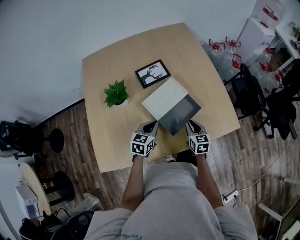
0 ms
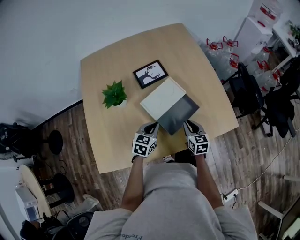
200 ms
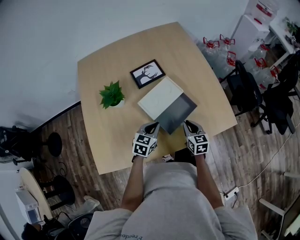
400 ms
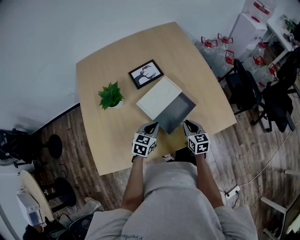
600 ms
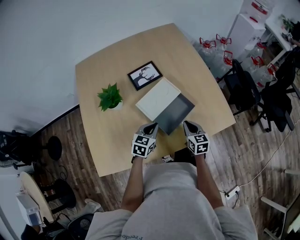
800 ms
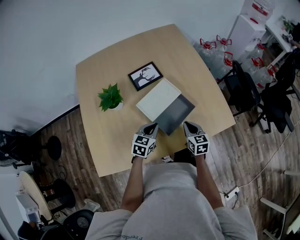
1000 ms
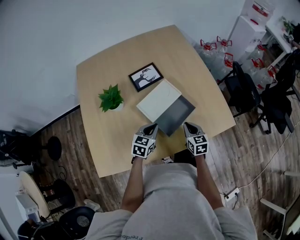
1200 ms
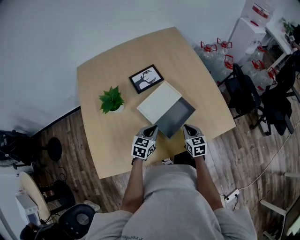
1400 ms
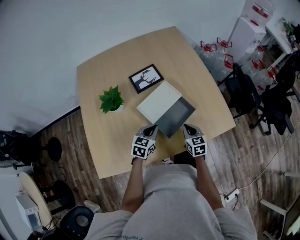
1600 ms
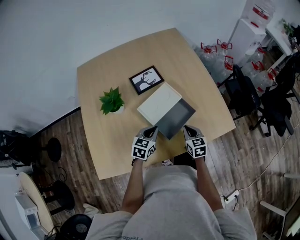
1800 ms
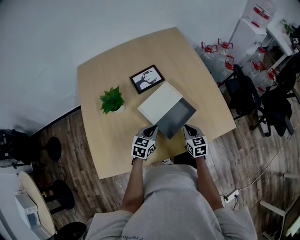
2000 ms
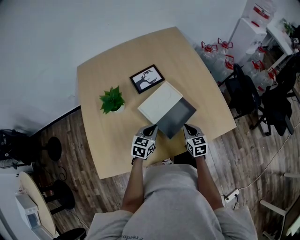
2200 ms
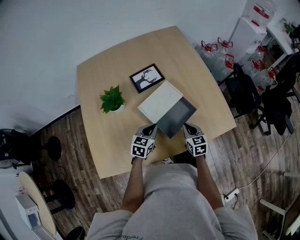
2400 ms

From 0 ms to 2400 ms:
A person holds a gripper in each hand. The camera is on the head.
From 0 ms to 2400 ms: The grippers make only small movements.

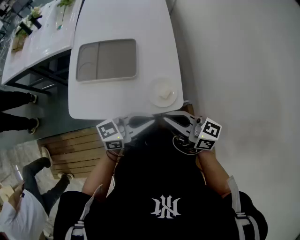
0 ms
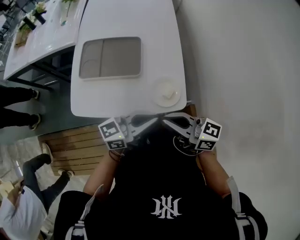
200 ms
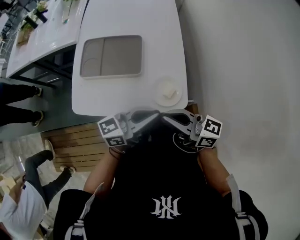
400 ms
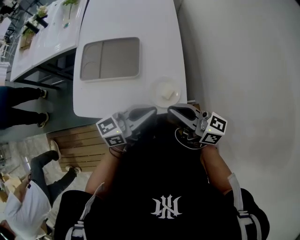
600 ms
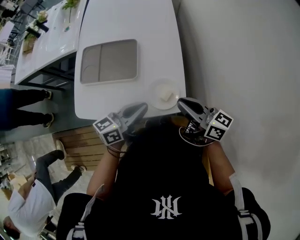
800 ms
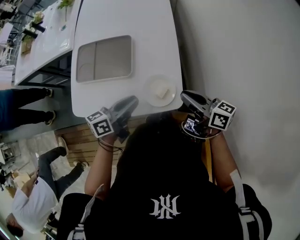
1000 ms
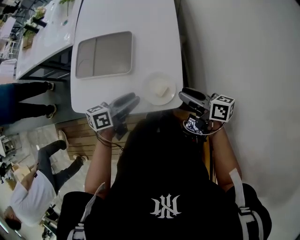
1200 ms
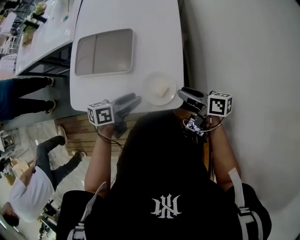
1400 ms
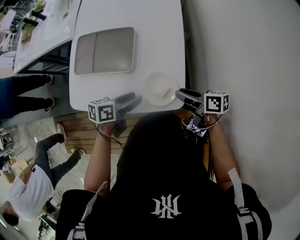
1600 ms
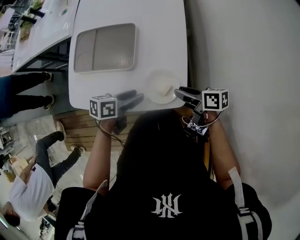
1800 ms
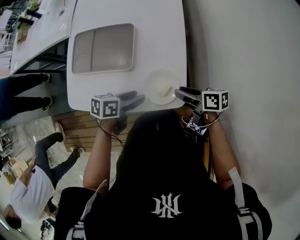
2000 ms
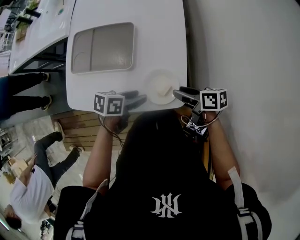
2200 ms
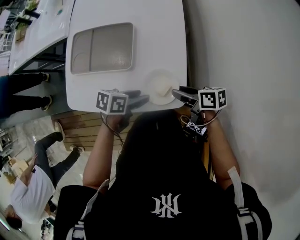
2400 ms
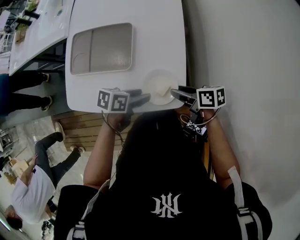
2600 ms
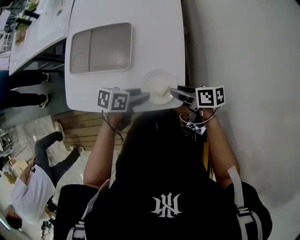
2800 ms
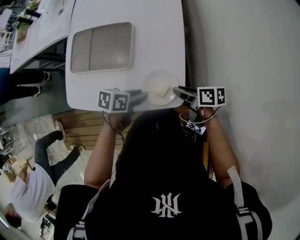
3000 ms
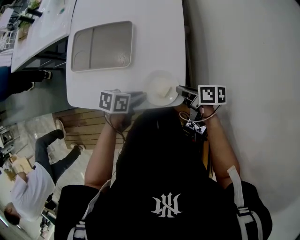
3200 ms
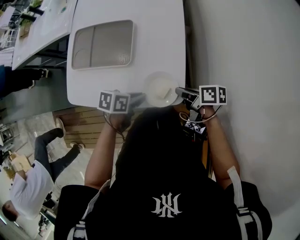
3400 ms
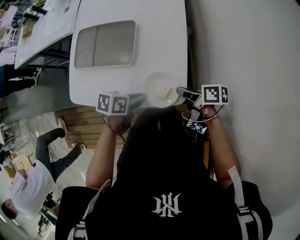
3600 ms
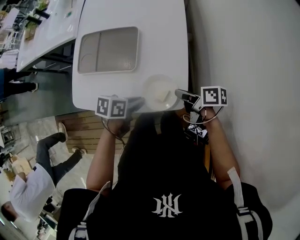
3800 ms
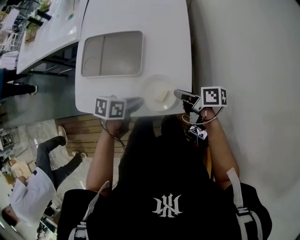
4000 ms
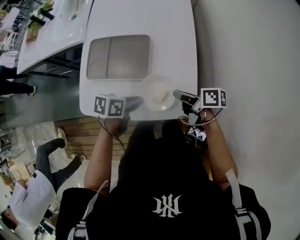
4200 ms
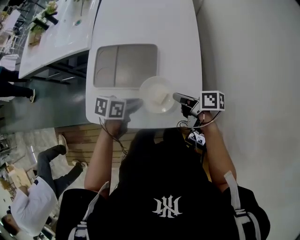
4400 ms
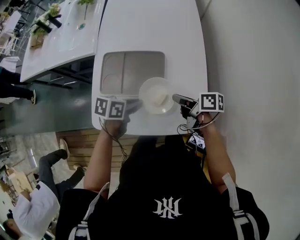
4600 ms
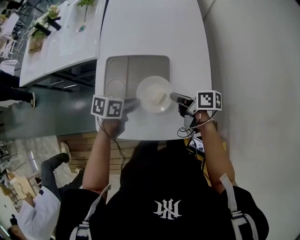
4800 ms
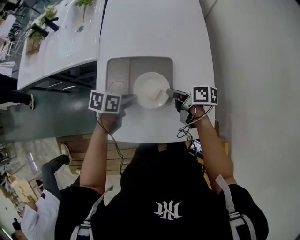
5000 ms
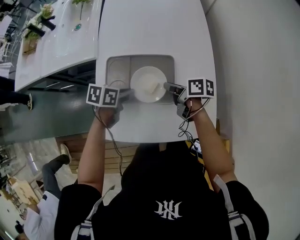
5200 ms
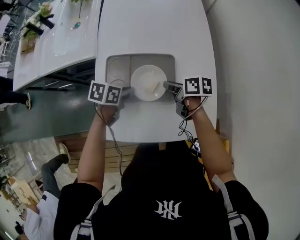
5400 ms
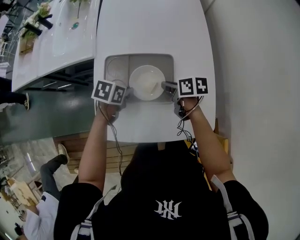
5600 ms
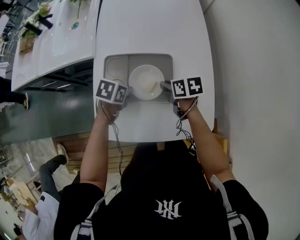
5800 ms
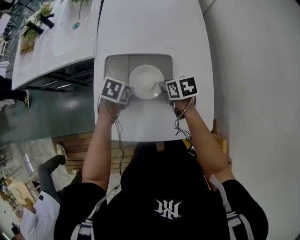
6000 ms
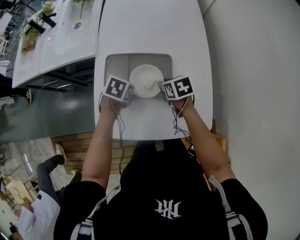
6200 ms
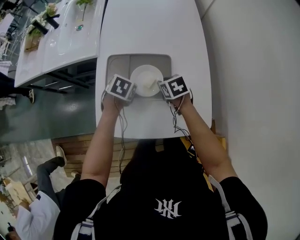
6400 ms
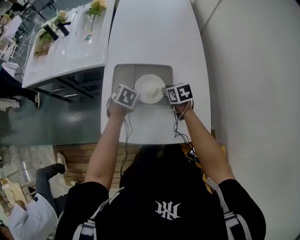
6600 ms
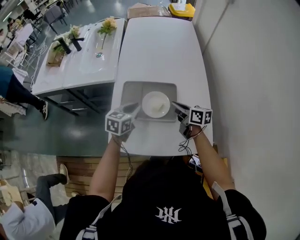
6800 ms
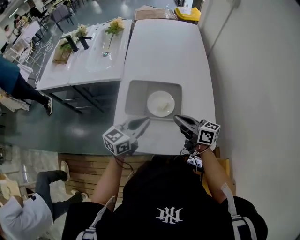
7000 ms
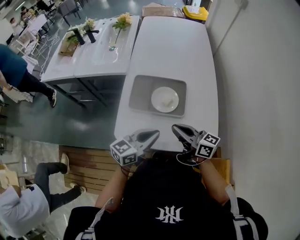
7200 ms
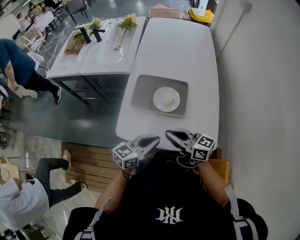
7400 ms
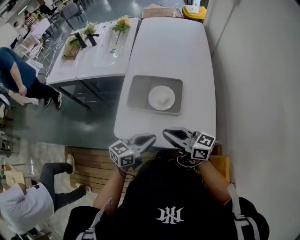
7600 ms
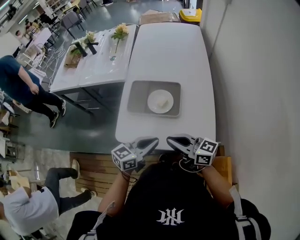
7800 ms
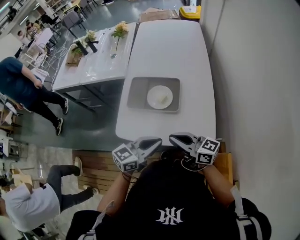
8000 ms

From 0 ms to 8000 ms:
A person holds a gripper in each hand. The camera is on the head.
From 0 ms to 1600 ms: Both grippers travel together downward, about 15 cm. The left gripper tips its fingers downward by roughly 40 degrees, and opens up. The right gripper turns by some 40 degrees, and opens its fingers.
From 1600 ms to 3200 ms: The right gripper closes; the left gripper shifts by roughly 5 cm, and closes.
From 3200 ms to 4800 ms: The left gripper ends up about 25 cm from where it was. The right gripper changes place by approximately 25 cm.
From 4800 ms to 6400 ms: The left gripper ends up about 10 cm from where it was, and swivels some 30 degrees. The right gripper changes place by some 10 cm, and angles its fingers downward, by roughly 30 degrees.
From 6400 ms to 8000 ms: The right gripper travels backward and upward by roughly 35 cm, and tilts its fingers about 60 degrees upward. Meanwhile the left gripper goes roughly 35 cm backward, upward and to the right, and points its fingers some 60 degrees further upward.

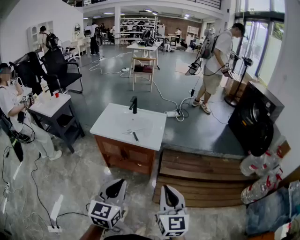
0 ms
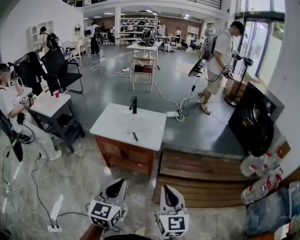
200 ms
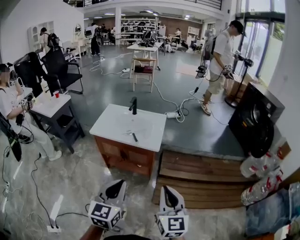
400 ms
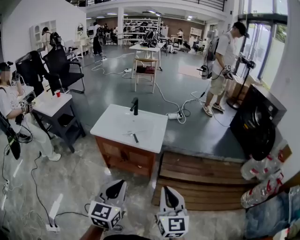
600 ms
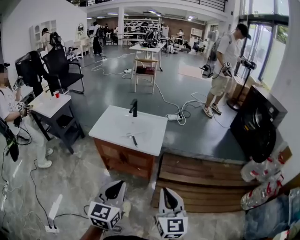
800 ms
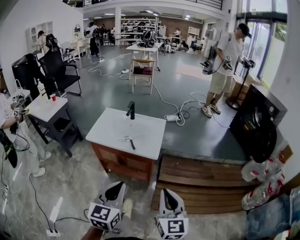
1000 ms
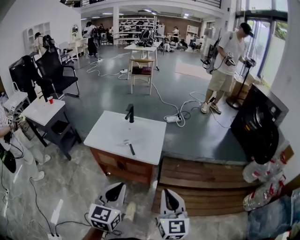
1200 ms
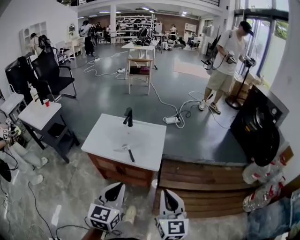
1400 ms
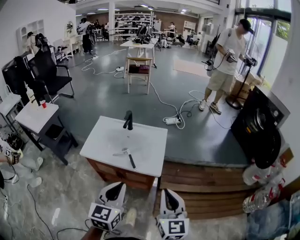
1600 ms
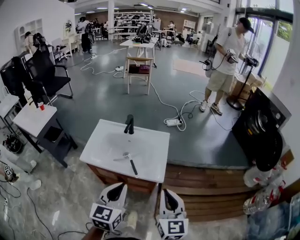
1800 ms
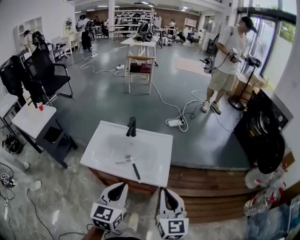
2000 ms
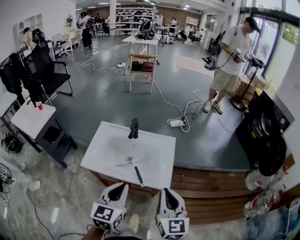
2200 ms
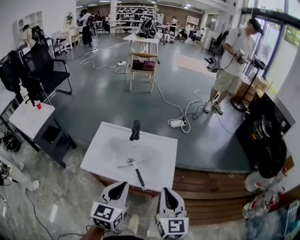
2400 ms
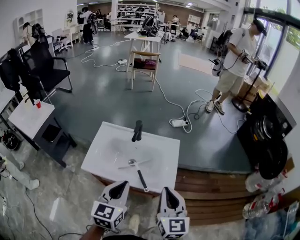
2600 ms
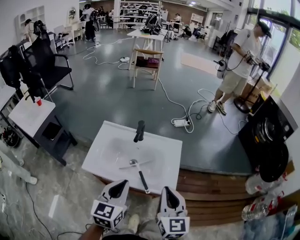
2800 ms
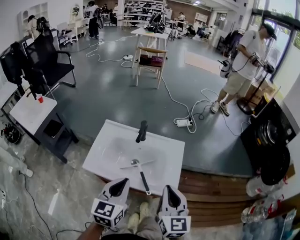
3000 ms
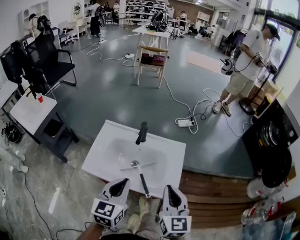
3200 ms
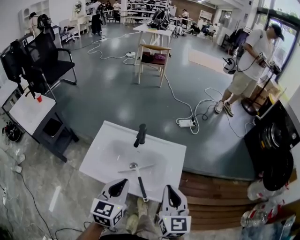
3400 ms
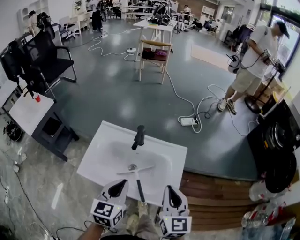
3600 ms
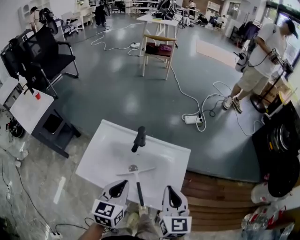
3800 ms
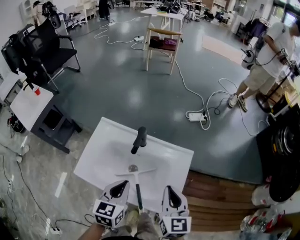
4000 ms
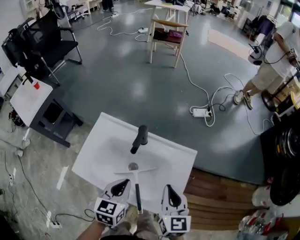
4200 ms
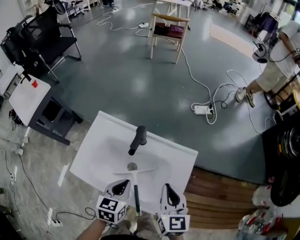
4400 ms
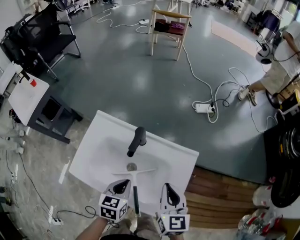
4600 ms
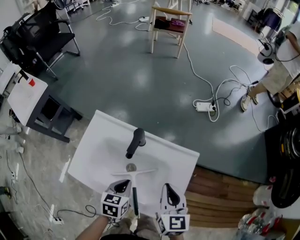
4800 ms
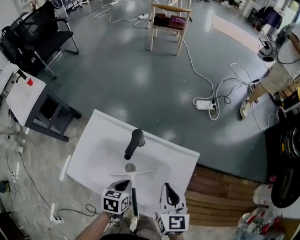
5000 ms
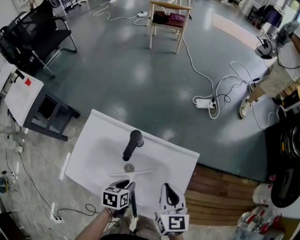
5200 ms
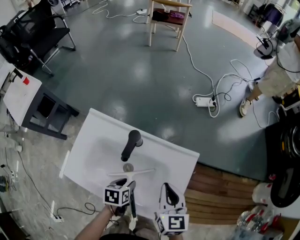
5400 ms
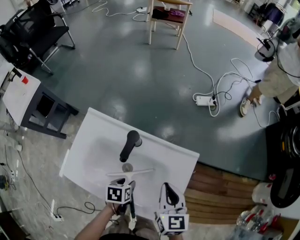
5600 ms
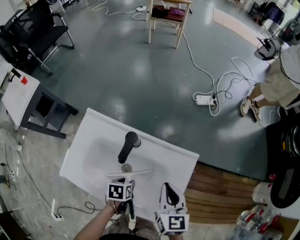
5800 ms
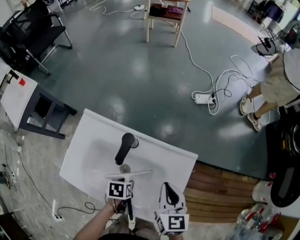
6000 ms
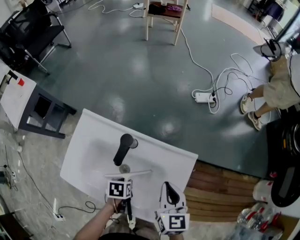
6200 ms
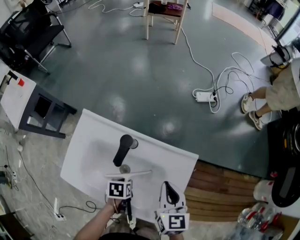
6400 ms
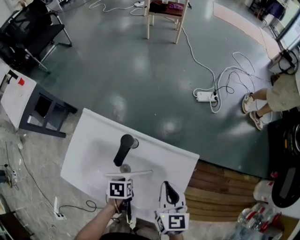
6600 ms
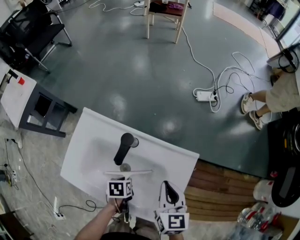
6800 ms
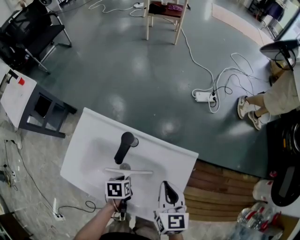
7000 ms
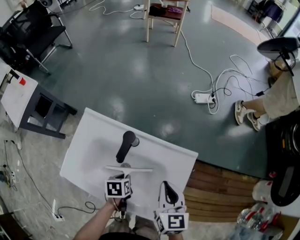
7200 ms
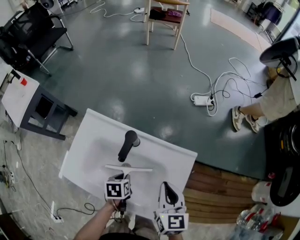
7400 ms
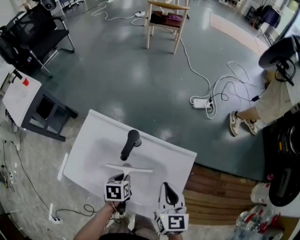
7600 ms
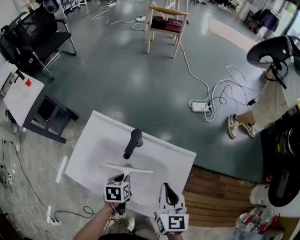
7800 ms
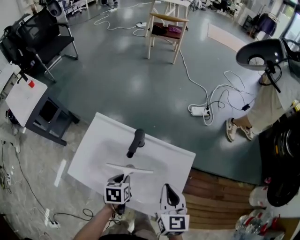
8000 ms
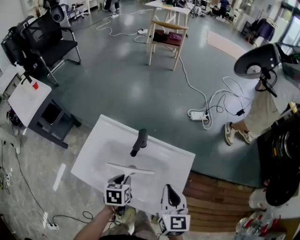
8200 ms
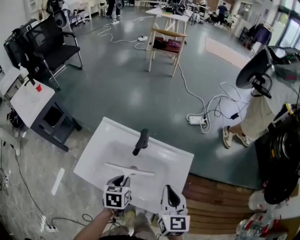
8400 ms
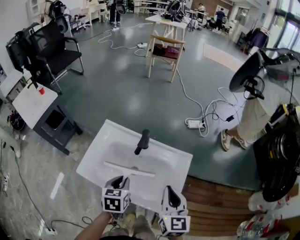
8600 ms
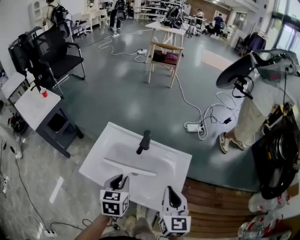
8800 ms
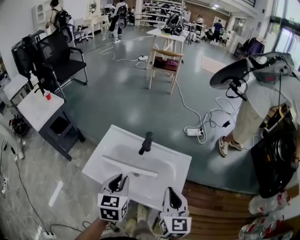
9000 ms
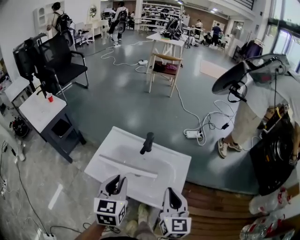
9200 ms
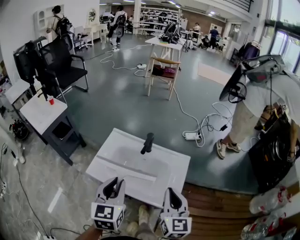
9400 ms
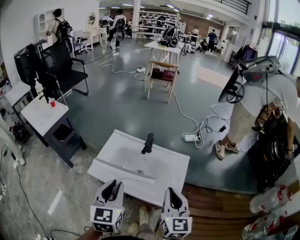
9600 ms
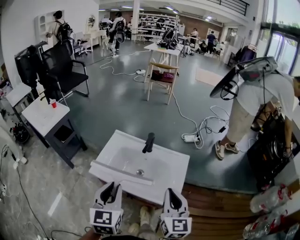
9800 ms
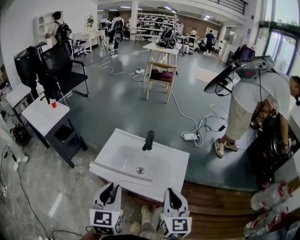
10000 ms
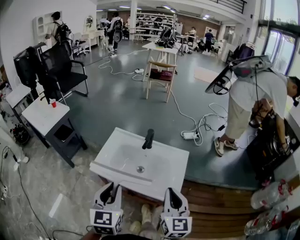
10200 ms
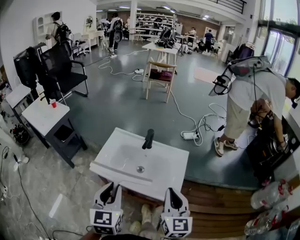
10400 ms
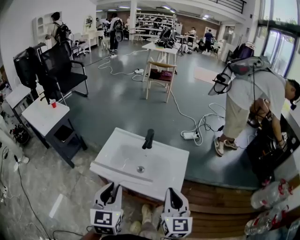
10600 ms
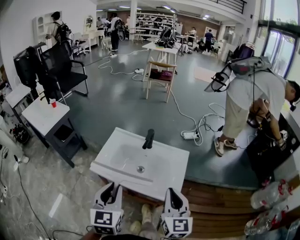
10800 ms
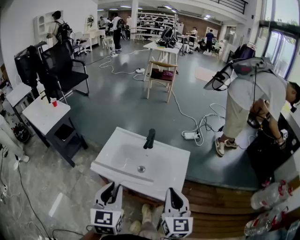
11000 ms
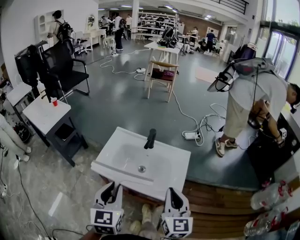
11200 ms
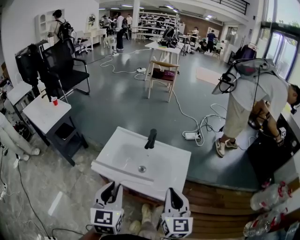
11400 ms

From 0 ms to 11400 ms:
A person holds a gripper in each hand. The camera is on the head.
From 0 ms to 1400 ms: The two grippers go approximately 15 cm forward.
From 1400 ms to 2800 ms: The two grippers go about 25 cm forward and to the left.
From 2800 ms to 4200 ms: The two grippers go roughly 20 cm forward and downward.
From 4200 ms to 5600 ms: The right gripper goes roughly 10 cm downward and forward; the left gripper shifts about 20 cm downward, tilts its fingers about 30 degrees downward, and opens.
From 5600 ms to 7200 ms: The left gripper closes its fingers.
From 7200 ms to 8600 ms: The right gripper travels upward and backward by some 15 cm, while the left gripper goes about 20 cm upward, and turns by about 30 degrees.
From 8600 ms to 10000 ms: The left gripper heads upward and backward, covering some 25 cm, and swivels about 30 degrees. Meanwhile the right gripper is displaced backward and upward by about 15 cm.
From 10000 ms to 11400 ms: The two grippers keep their place.

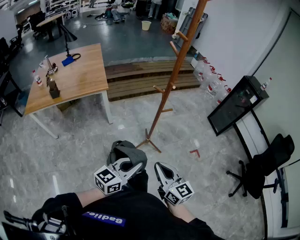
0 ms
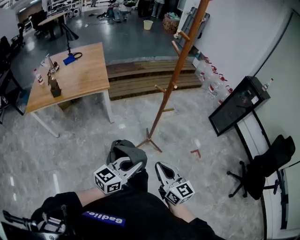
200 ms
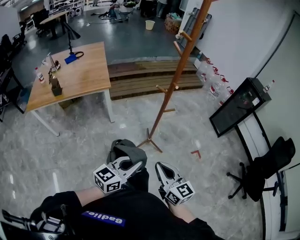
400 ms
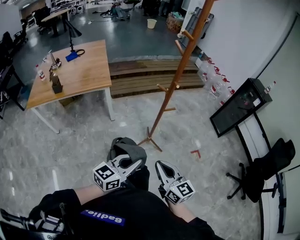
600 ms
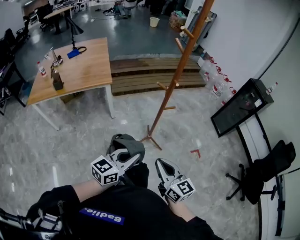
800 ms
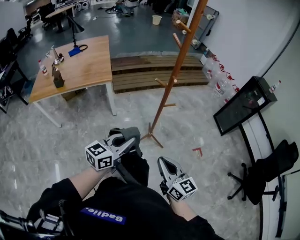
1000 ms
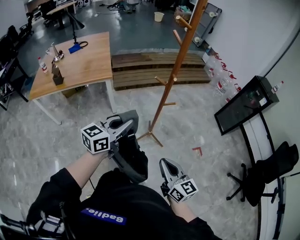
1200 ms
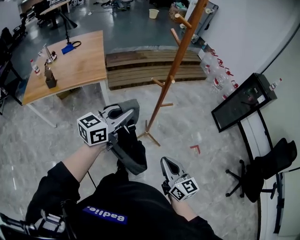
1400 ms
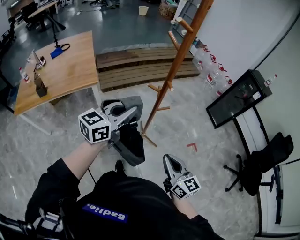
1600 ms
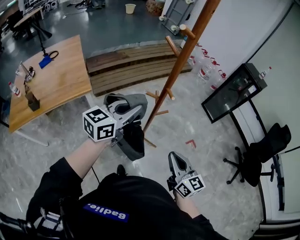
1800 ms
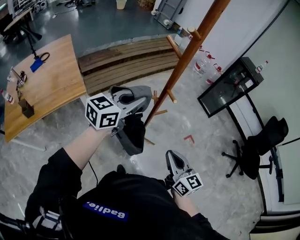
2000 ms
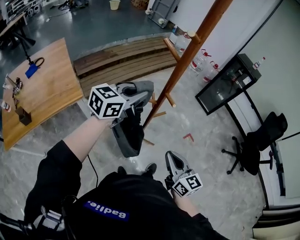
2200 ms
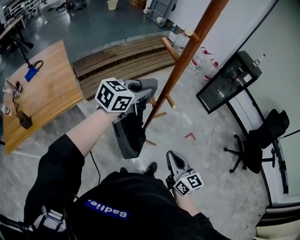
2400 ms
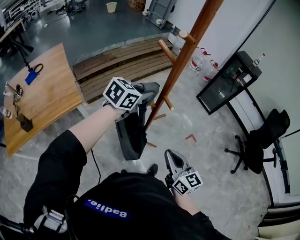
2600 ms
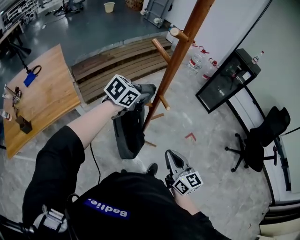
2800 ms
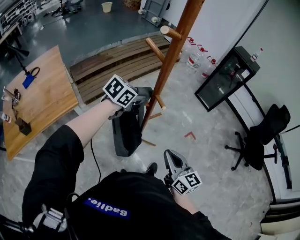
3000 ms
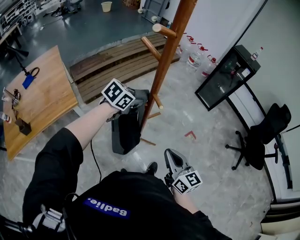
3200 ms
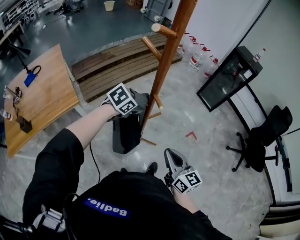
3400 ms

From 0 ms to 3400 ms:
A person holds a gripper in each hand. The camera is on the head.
From 0 ms to 1600 ms: The right gripper moves forward and to the right, about 15 cm. The left gripper travels forward by roughly 25 cm.
From 1600 ms to 3400 ms: The left gripper moves forward and downward, roughly 25 cm, points its fingers roughly 50 degrees further downward, and opens its fingers. The right gripper shifts about 10 cm forward.
